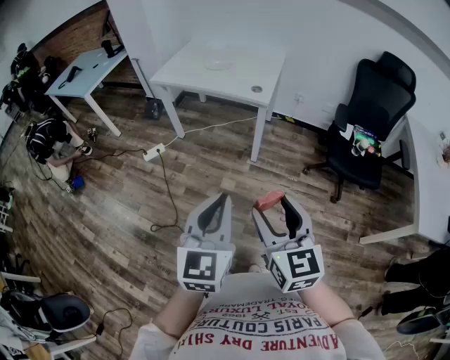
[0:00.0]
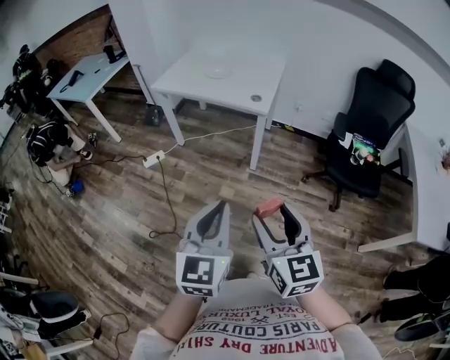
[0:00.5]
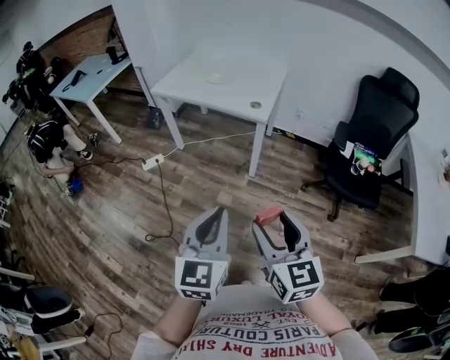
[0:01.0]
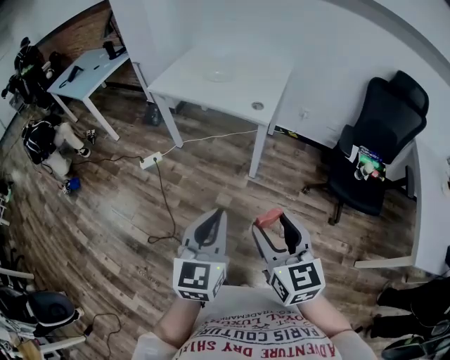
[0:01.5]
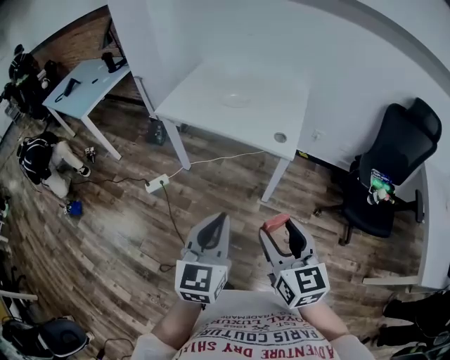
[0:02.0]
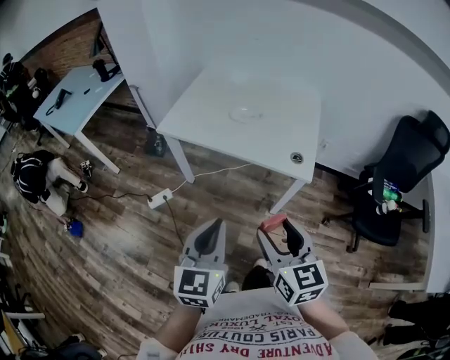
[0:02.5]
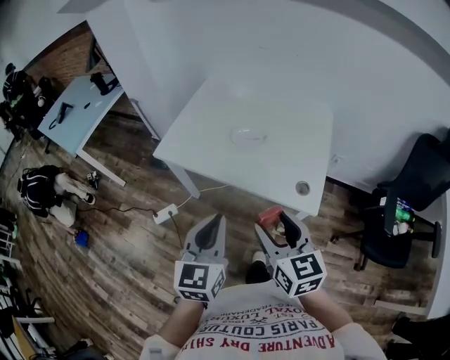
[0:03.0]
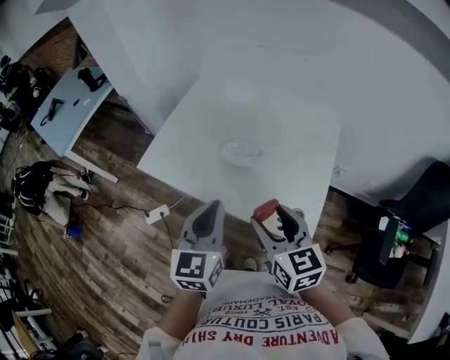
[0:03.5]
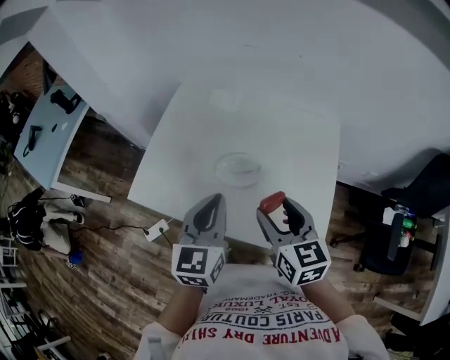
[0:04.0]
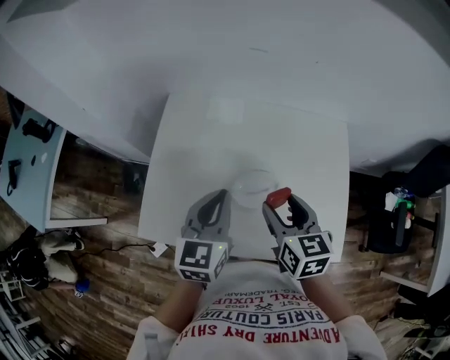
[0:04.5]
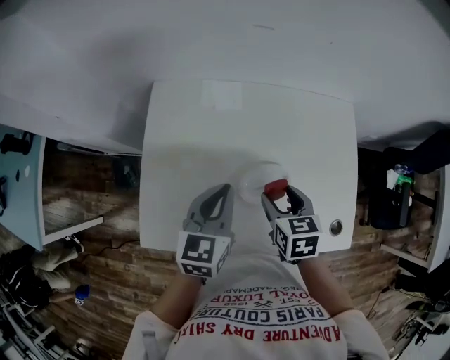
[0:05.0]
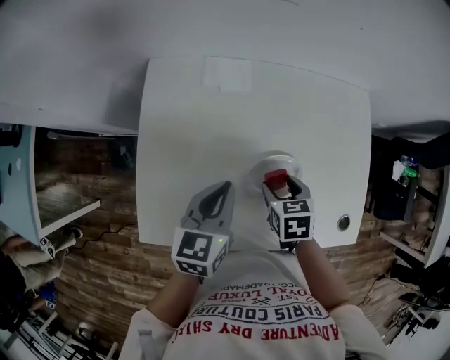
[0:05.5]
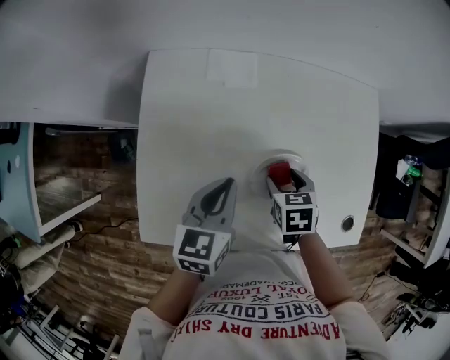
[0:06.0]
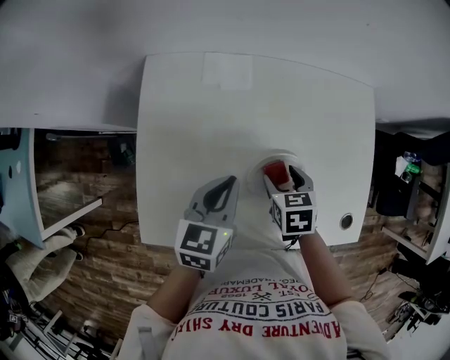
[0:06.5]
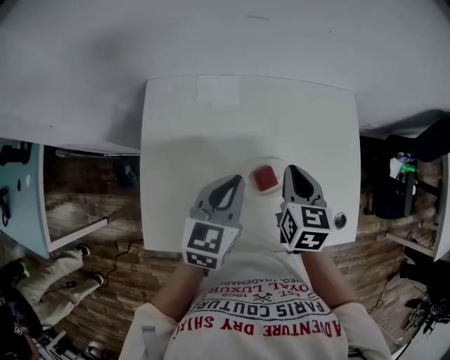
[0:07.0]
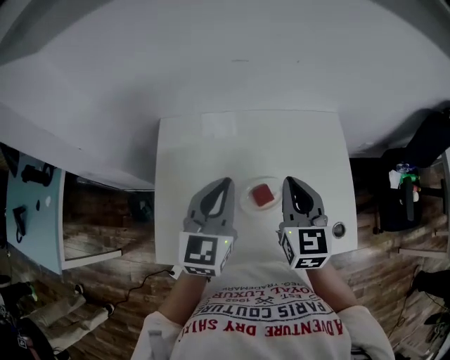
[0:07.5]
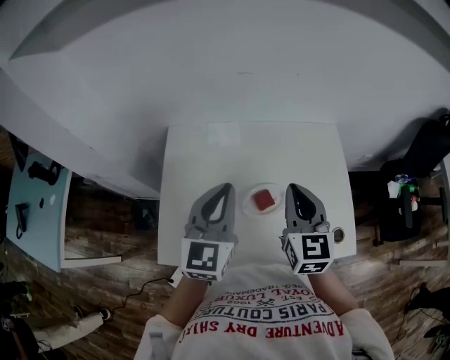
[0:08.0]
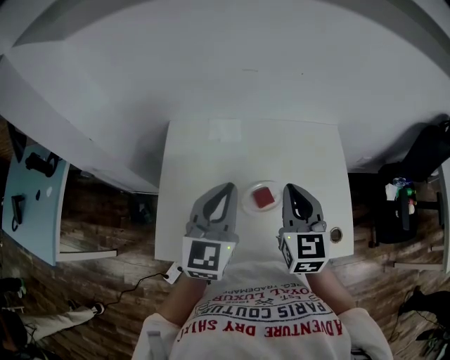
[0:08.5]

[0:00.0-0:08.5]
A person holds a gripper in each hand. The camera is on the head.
0:00.0 to 0:02.0: The two grippers go some 25 cm forward.
0:02.0 to 0:04.0: The pair of grippers is taken forward, roughly 60 cm.
0:04.0 to 0:06.5: The right gripper goes about 20 cm downward, and angles its fingers downward, by some 40 degrees. Meanwhile the left gripper ends up approximately 25 cm from where it was, and swivels about 30 degrees.
0:06.5 to 0:08.5: The grippers both shift upward by roughly 20 cm. The left gripper turns by roughly 40 degrees. Meanwhile the right gripper angles its fingers upward, by about 40 degrees, and closes up.

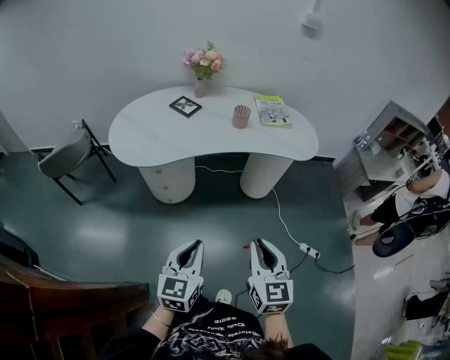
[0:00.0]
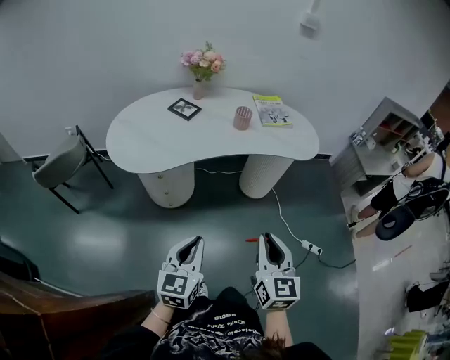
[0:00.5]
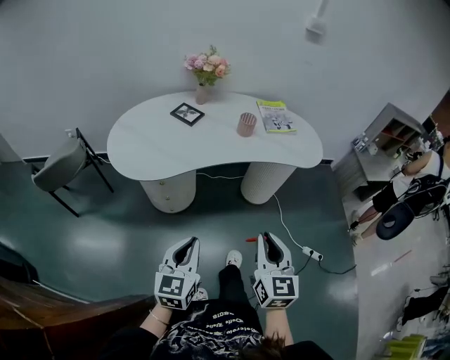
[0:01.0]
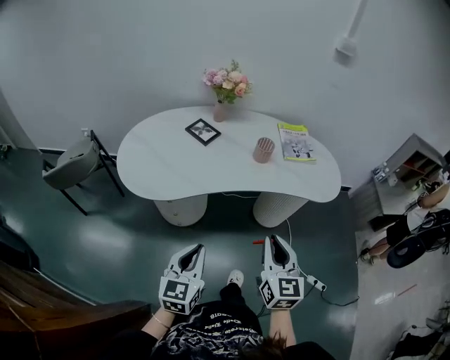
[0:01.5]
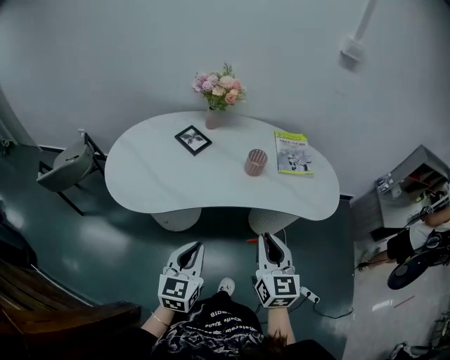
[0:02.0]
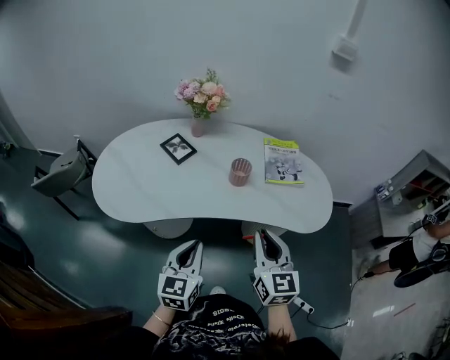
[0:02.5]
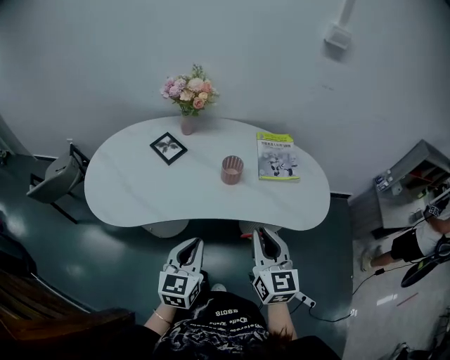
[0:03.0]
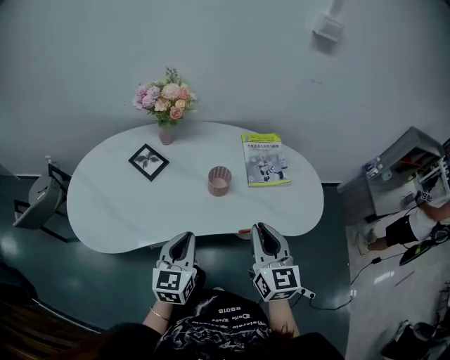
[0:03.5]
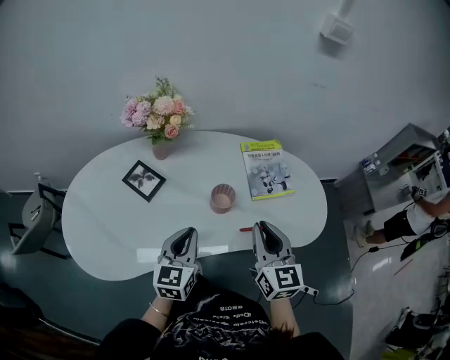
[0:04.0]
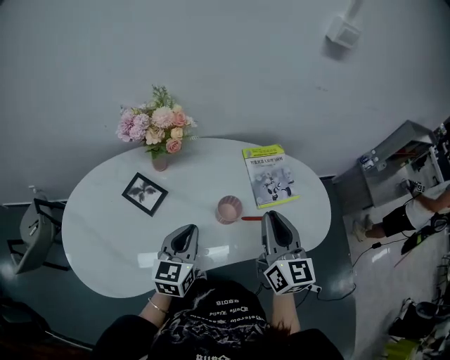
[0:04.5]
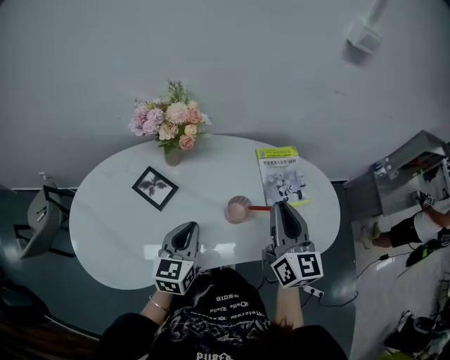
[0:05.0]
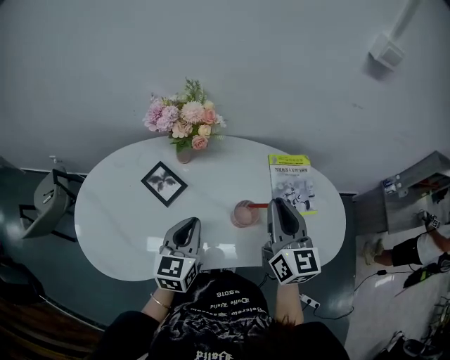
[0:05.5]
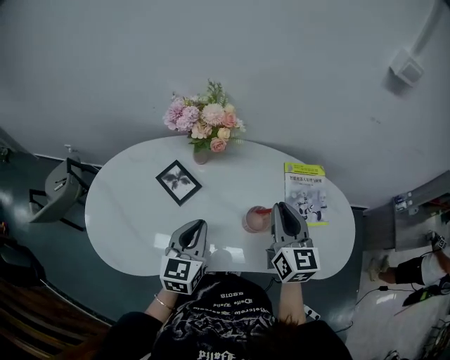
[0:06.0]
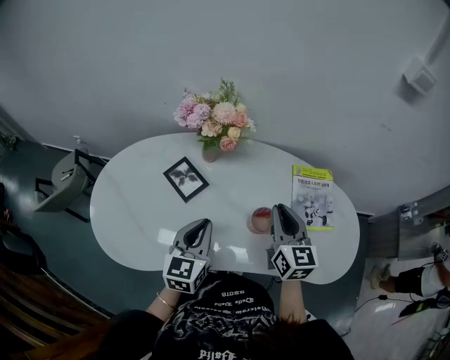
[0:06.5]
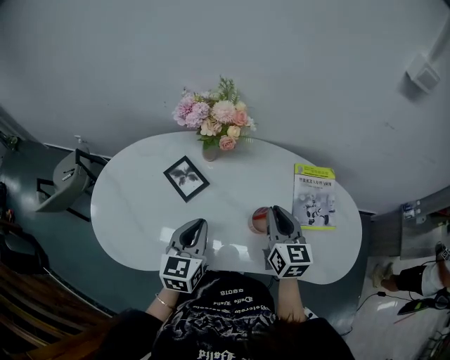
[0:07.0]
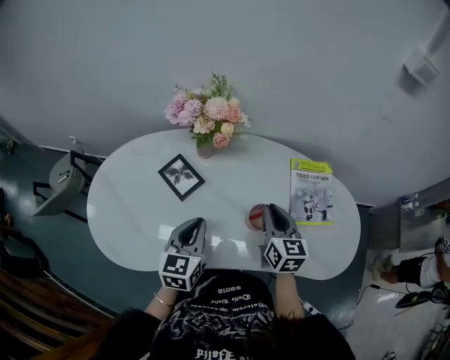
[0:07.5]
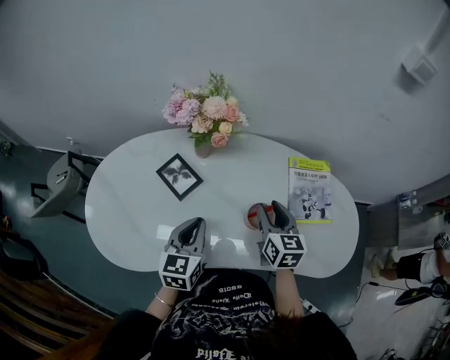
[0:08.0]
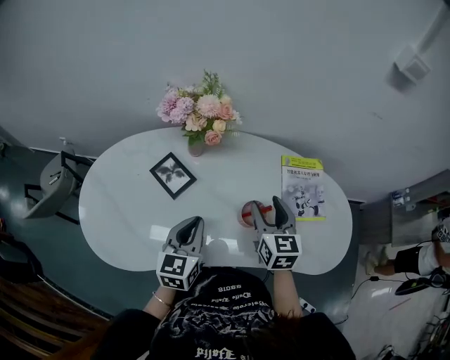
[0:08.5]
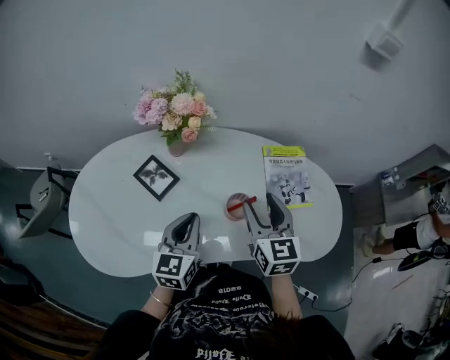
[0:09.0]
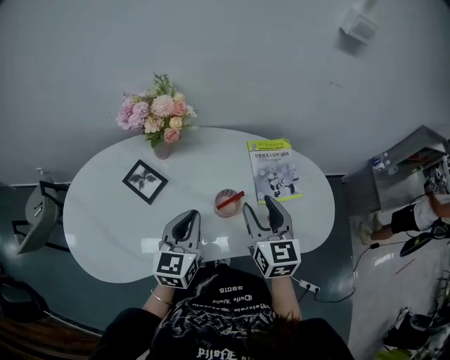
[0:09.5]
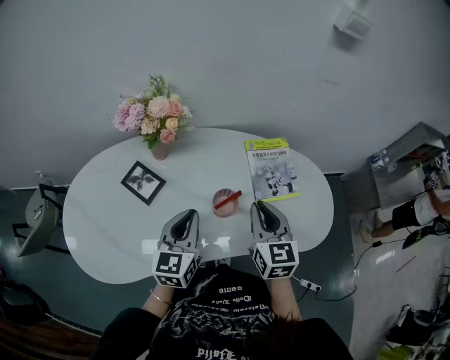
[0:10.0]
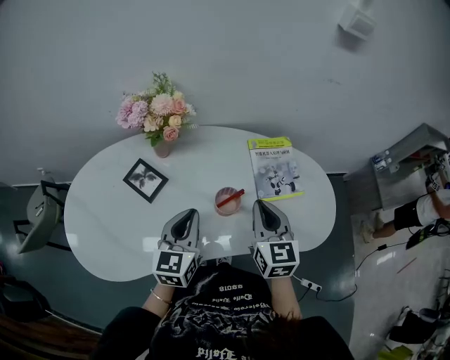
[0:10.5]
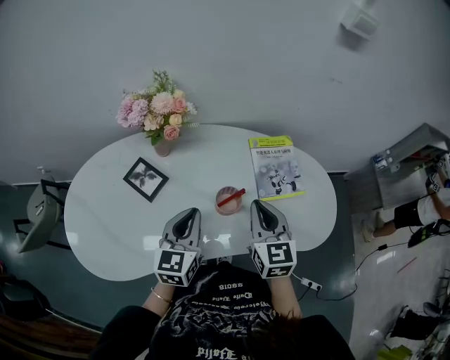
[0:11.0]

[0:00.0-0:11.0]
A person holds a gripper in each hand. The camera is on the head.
0:00.0 to 0:02.0: The two grippers go about 30 cm forward.
0:02.0 to 0:03.5: The two grippers go some 20 cm forward and to the right.
0:03.5 to 0:05.5: The left gripper moves forward and to the left, roughly 20 cm, while the right gripper goes some 20 cm forward.
0:05.5 to 0:07.5: The right gripper goes approximately 15 cm downward.
0:07.5 to 0:09.0: The right gripper heads upward, covering roughly 5 cm, and opens its fingers.
0:09.0 to 0:11.0: The right gripper ends up some 5 cm from where it was, and closes.

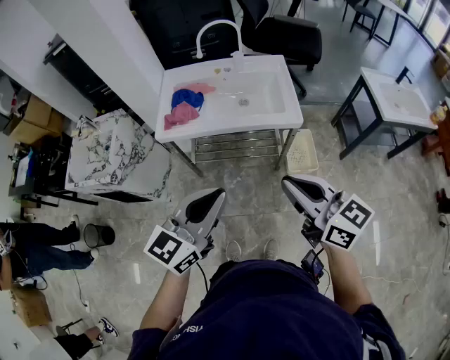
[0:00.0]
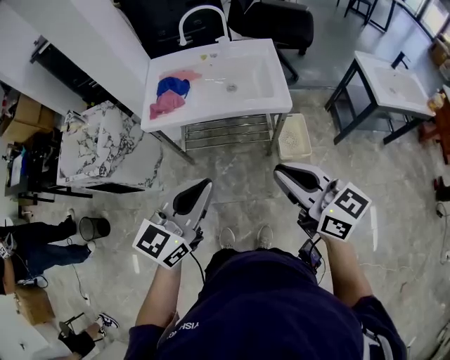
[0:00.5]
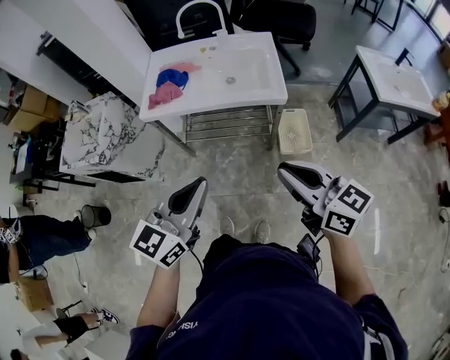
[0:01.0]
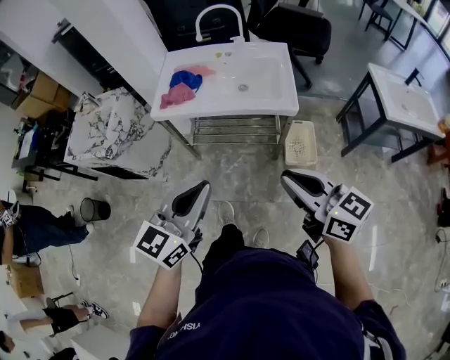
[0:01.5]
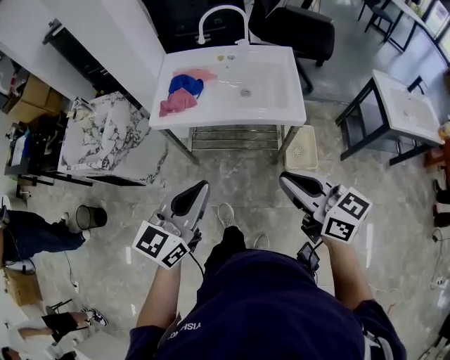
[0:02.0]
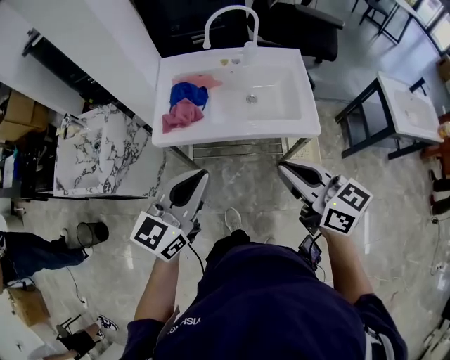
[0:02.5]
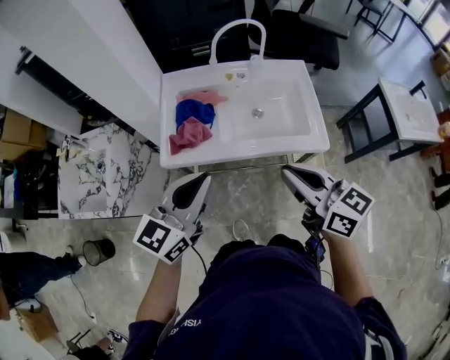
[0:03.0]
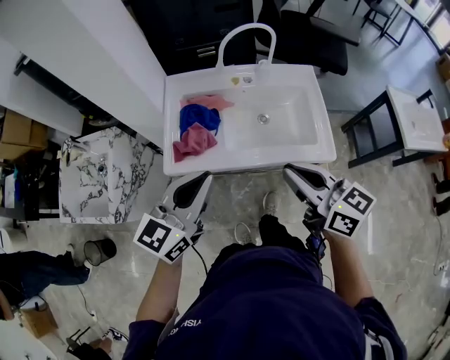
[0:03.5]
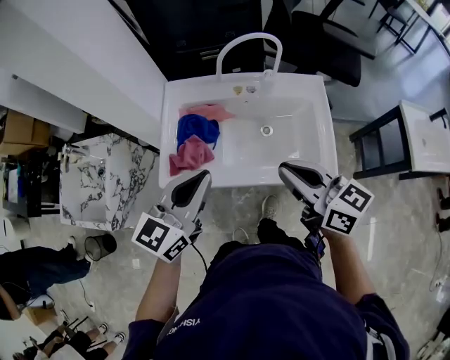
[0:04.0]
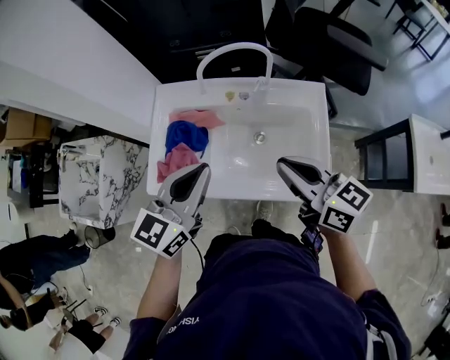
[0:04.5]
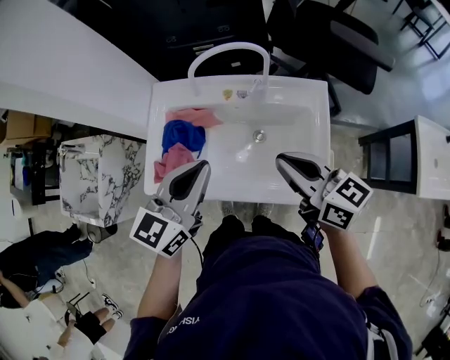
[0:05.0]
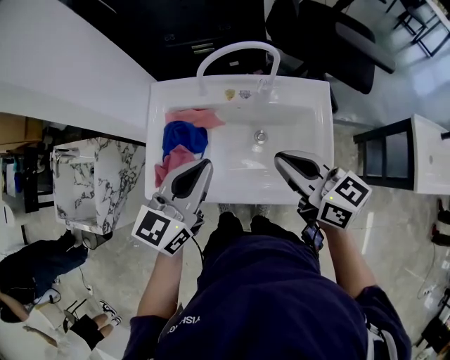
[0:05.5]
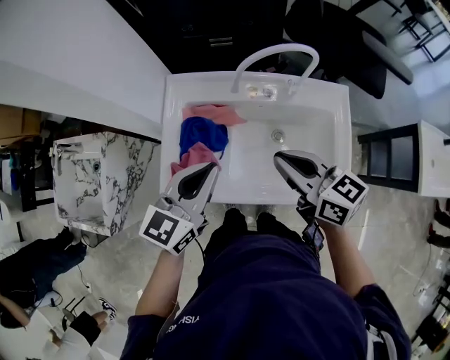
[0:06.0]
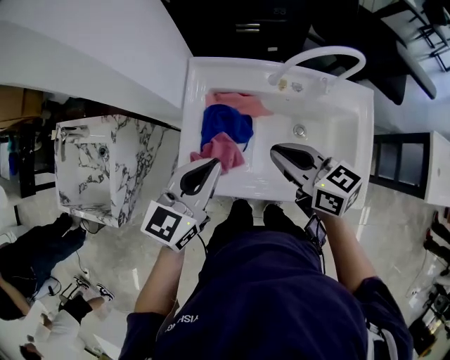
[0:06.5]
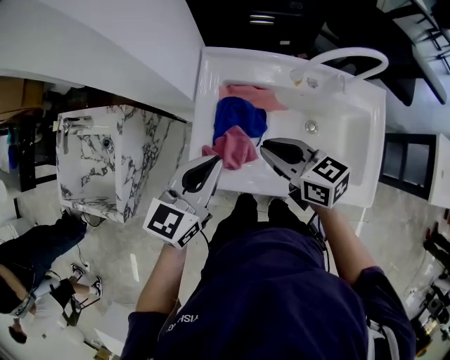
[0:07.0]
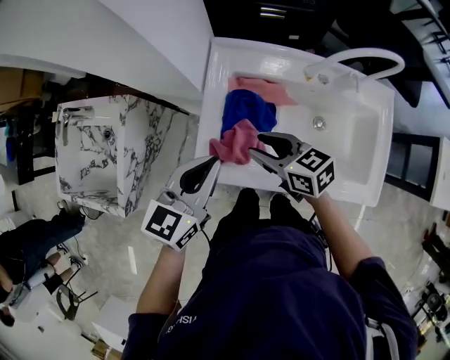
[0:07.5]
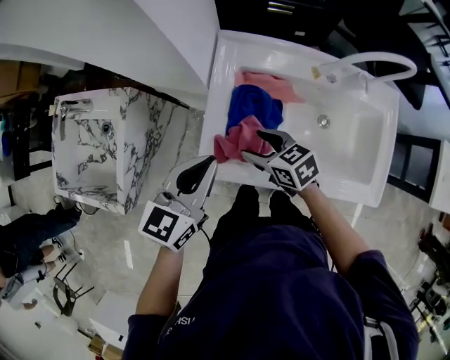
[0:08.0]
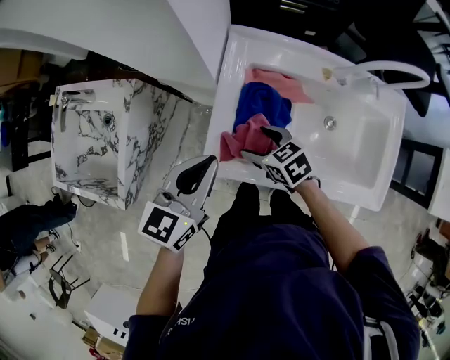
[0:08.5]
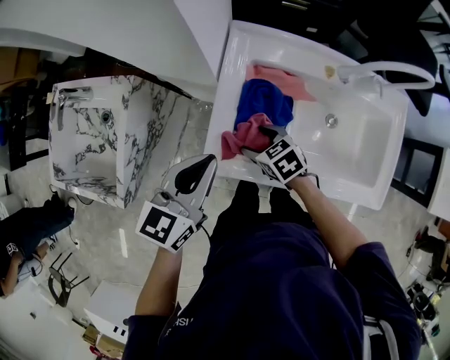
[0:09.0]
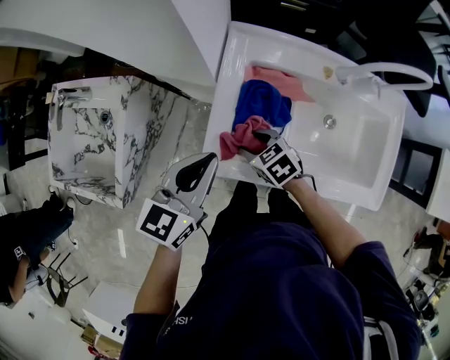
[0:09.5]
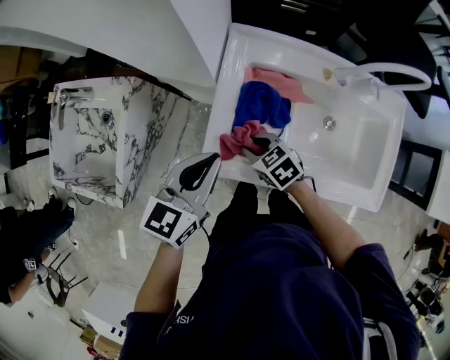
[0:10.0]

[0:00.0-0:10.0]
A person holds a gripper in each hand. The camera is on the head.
0:02.0 to 0:04.0: Both grippers travel together forward, about 35 cm.
0:04.0 to 0:06.0: The two grippers go some 15 cm forward and downward.
0:06.0 to 0:08.0: The right gripper travels to the left and downward by roughly 30 cm, turns by approximately 30 degrees, and opens. The left gripper is displaced to the left by some 15 cm.
0:08.0 to 0:10.0: The right gripper travels downward by roughly 5 cm, and closes its fingers.
